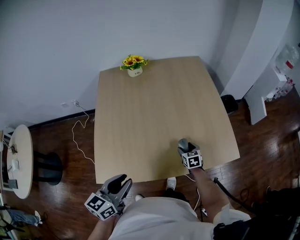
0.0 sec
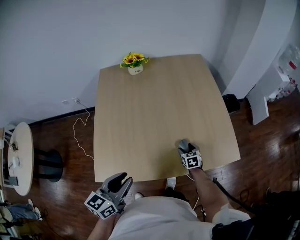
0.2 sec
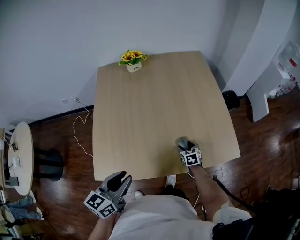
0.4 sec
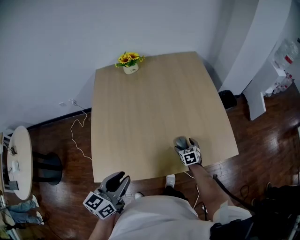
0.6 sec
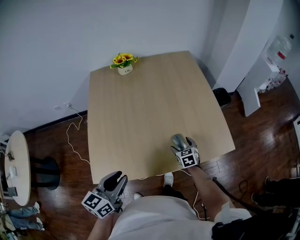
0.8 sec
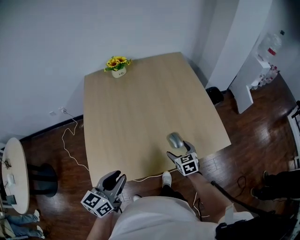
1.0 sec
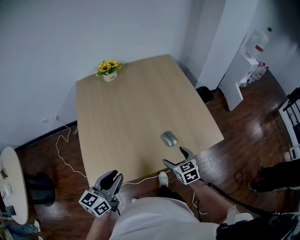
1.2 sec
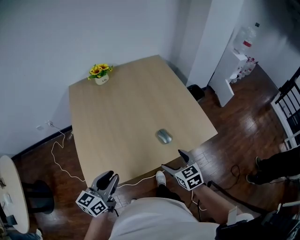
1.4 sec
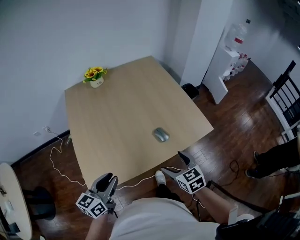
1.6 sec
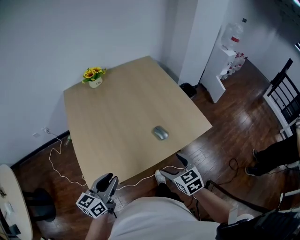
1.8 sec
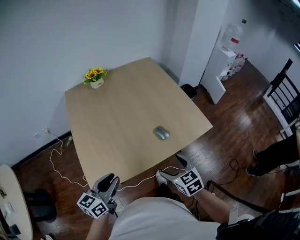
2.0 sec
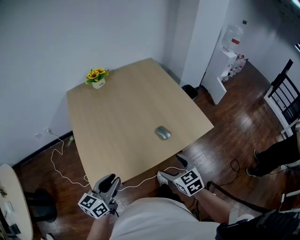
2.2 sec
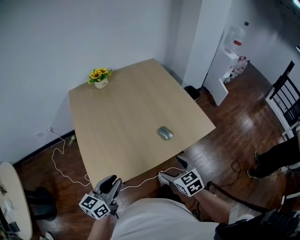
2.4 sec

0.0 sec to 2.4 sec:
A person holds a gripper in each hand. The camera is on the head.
0.0 sec to 1.2 sec: The right gripper is displaced upward and backward by about 20 cm.
1.2 sec to 2.4 sec: The left gripper goes some 5 cm backward. Meanwhile the right gripper heads backward and upward, covering approximately 15 cm.

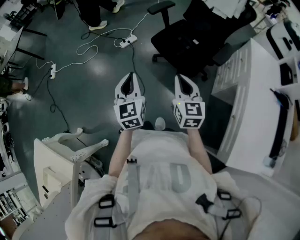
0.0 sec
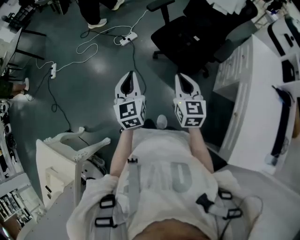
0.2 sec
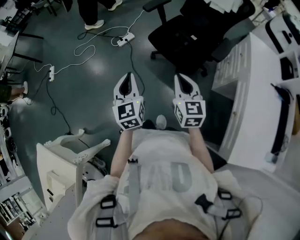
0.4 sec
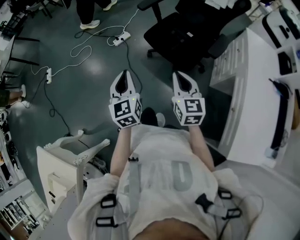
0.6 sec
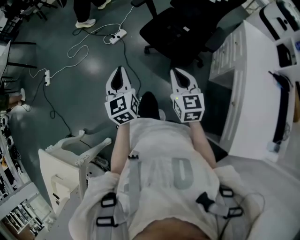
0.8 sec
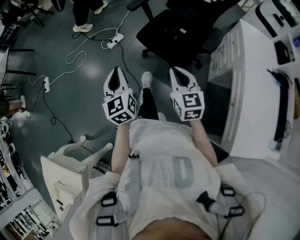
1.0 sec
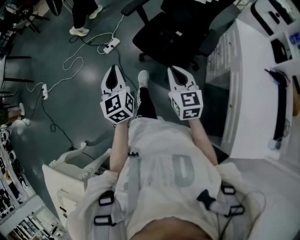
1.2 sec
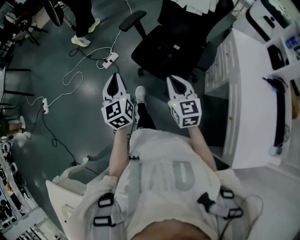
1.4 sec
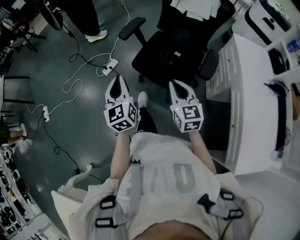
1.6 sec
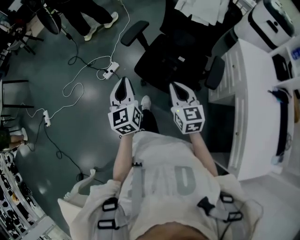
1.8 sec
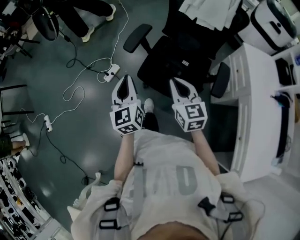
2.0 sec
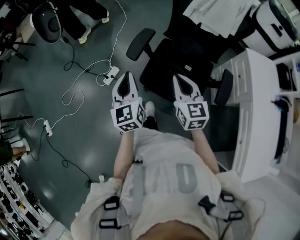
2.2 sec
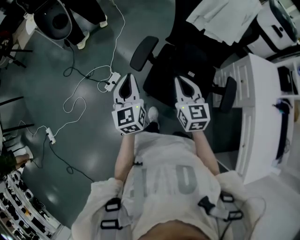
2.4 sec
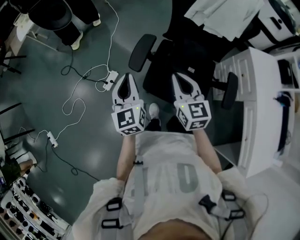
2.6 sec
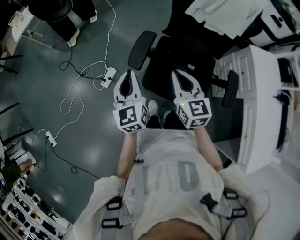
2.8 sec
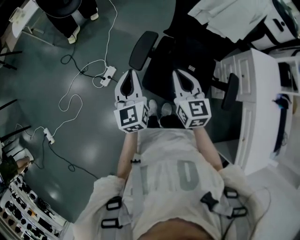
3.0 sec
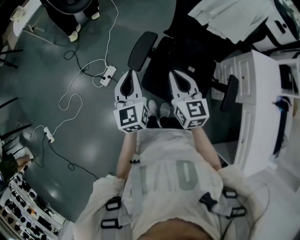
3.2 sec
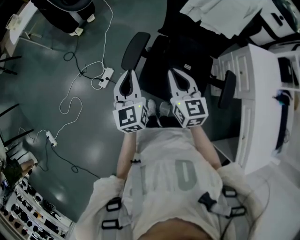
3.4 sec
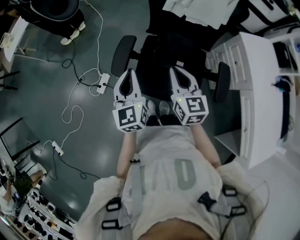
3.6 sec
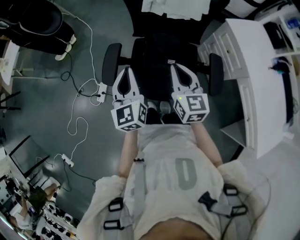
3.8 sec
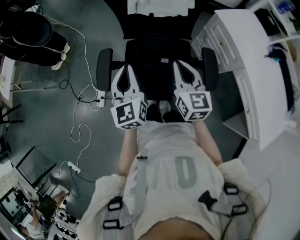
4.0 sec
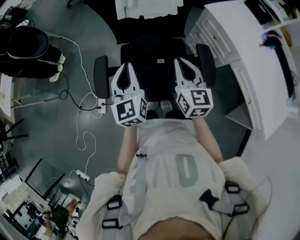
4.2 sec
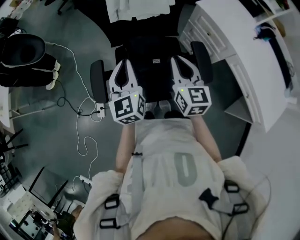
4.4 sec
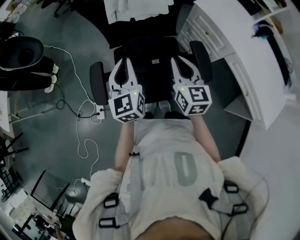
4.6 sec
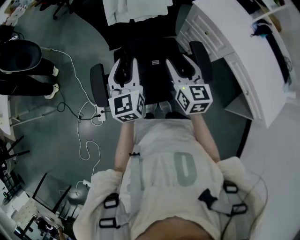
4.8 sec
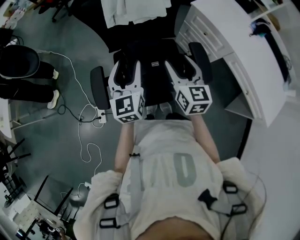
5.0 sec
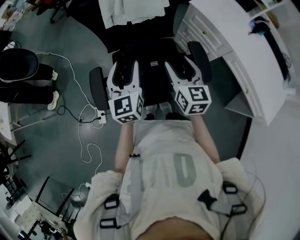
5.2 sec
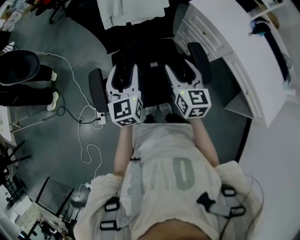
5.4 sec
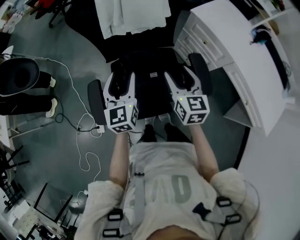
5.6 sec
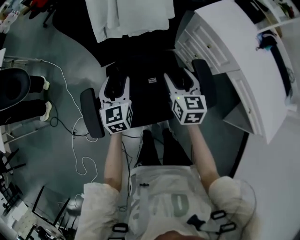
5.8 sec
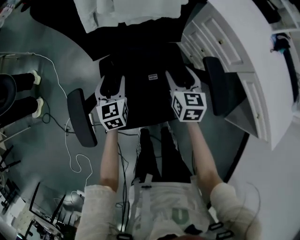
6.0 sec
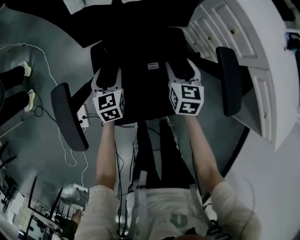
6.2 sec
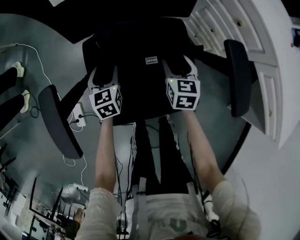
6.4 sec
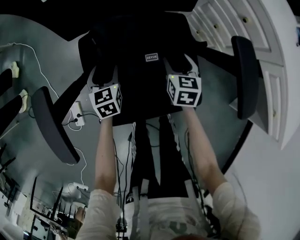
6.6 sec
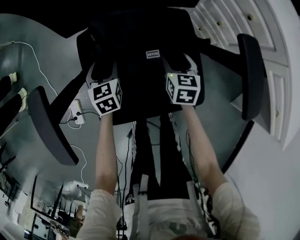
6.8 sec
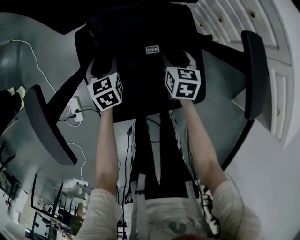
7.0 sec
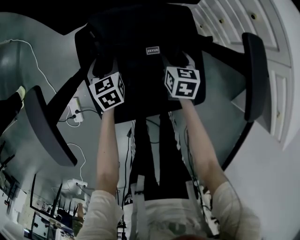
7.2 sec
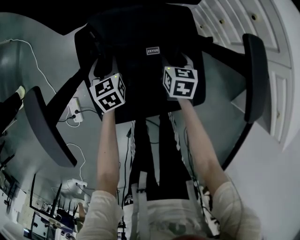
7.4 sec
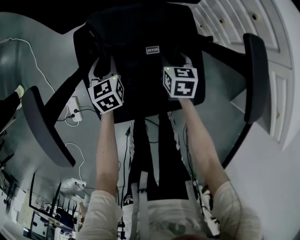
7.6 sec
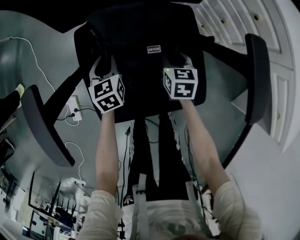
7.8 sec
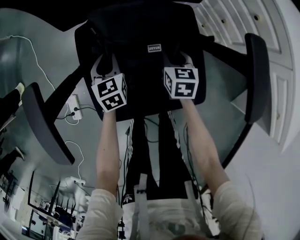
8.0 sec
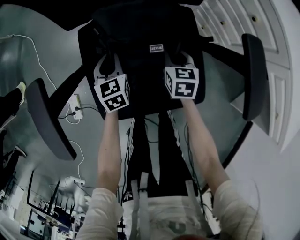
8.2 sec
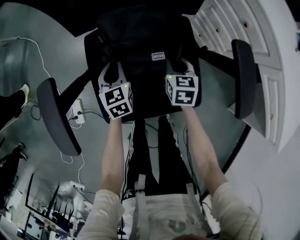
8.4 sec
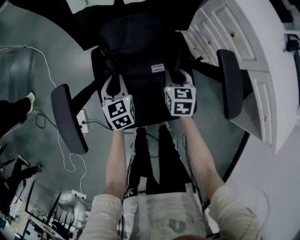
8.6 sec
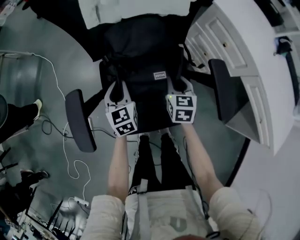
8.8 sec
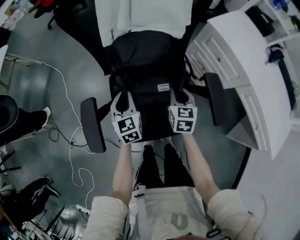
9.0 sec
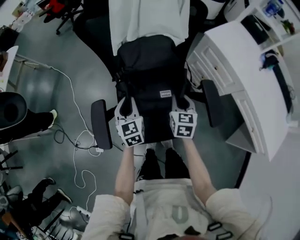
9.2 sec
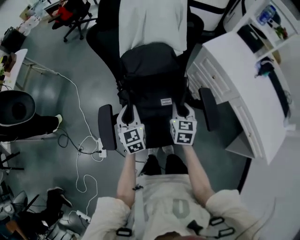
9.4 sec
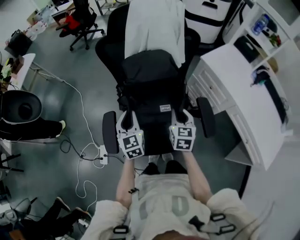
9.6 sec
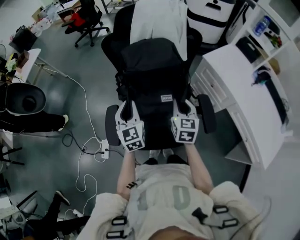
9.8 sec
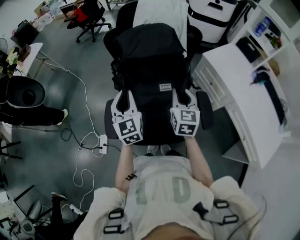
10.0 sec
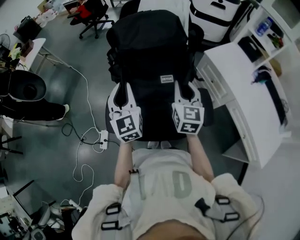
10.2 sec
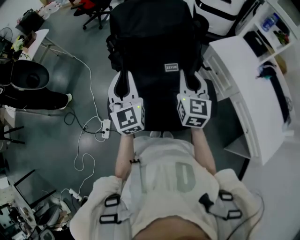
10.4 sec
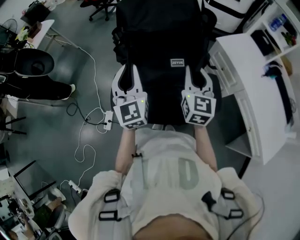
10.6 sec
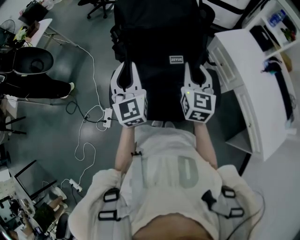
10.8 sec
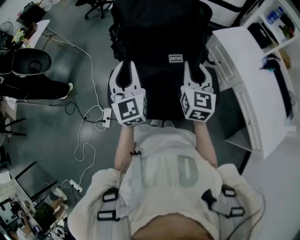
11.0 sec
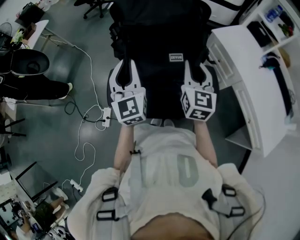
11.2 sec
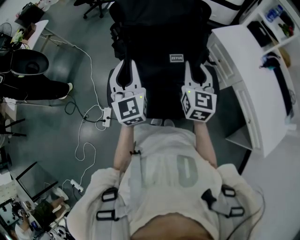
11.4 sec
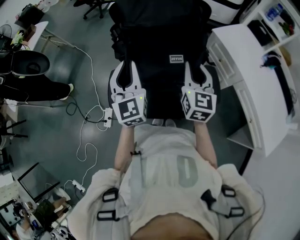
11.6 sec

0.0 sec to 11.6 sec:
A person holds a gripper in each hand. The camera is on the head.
0.0 sec to 1.4 sec: The left gripper is displaced forward by approximately 15 cm; the right gripper travels forward and to the right by some 10 cm.
1.4 sec to 2.8 sec: The grippers both shift forward by roughly 35 cm.
2.8 sec to 4.4 sec: The left gripper ends up roughly 25 cm from where it was, and rotates roughly 30 degrees. Meanwhile the right gripper ends up about 25 cm from where it was, and swivels approximately 40 degrees.
4.4 sec to 5.8 sec: The two grippers go some 15 cm downward and forward. The right gripper opens. The left gripper opens up.
5.8 sec to 7.2 sec: Both grippers move downward, approximately 35 cm. The right gripper turns by roughly 20 degrees. Meanwhile the left gripper rotates about 30 degrees.
7.2 sec to 8.8 sec: The two grippers go some 20 cm upward. The right gripper closes its fingers; the left gripper closes its fingers.
8.8 sec to 10.2 sec: Both grippers move upward, about 40 cm. The left gripper changes its angle by approximately 30 degrees; the right gripper swivels roughly 30 degrees.
10.2 sec to 11.6 sec: The grippers move only a little.

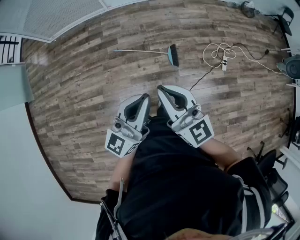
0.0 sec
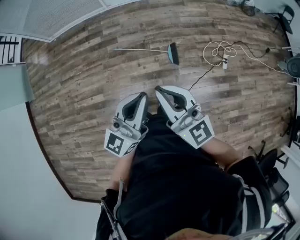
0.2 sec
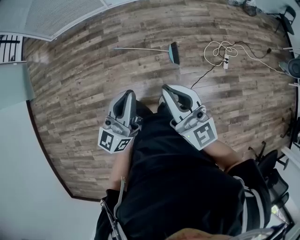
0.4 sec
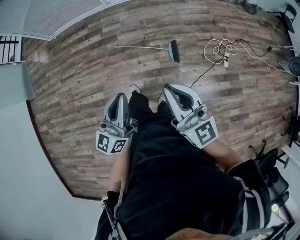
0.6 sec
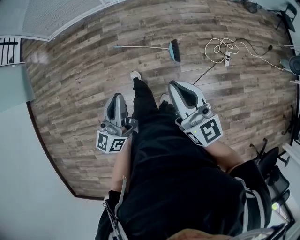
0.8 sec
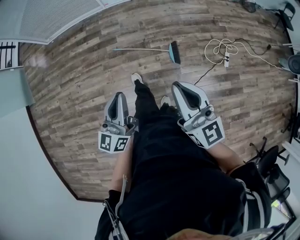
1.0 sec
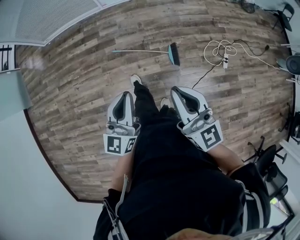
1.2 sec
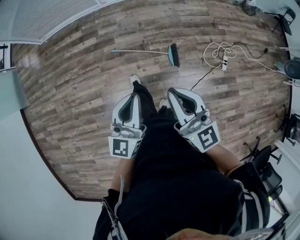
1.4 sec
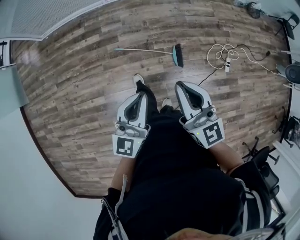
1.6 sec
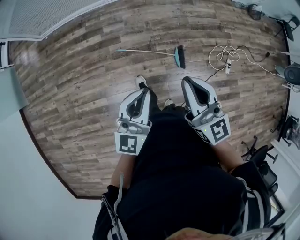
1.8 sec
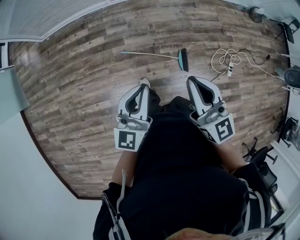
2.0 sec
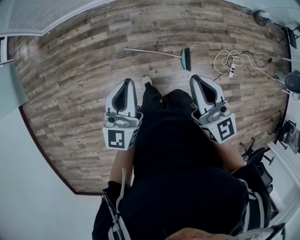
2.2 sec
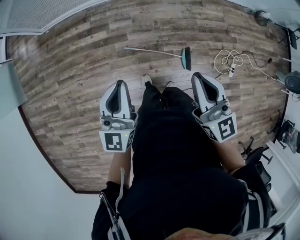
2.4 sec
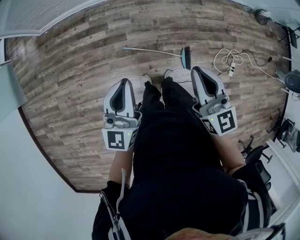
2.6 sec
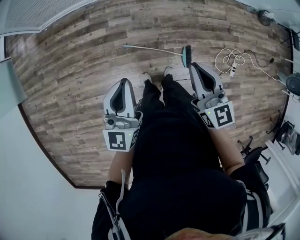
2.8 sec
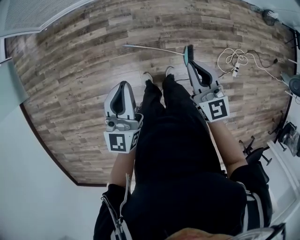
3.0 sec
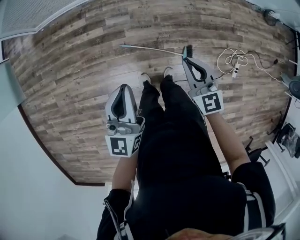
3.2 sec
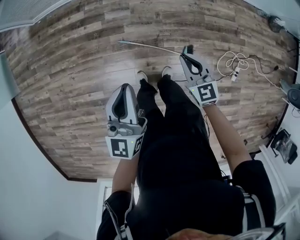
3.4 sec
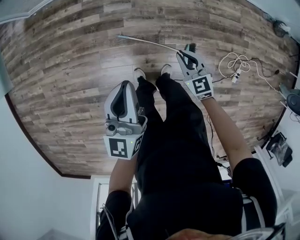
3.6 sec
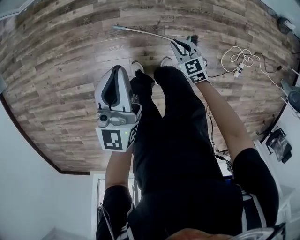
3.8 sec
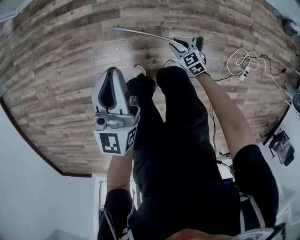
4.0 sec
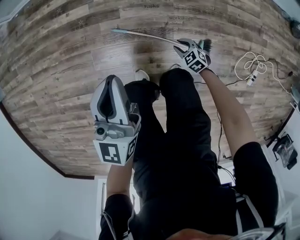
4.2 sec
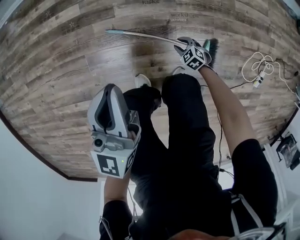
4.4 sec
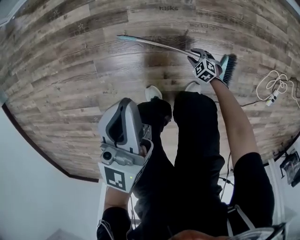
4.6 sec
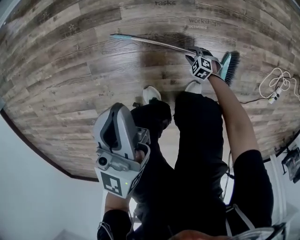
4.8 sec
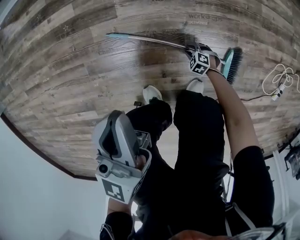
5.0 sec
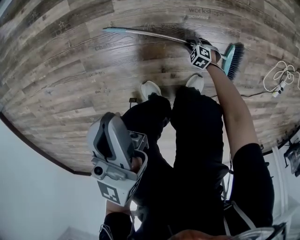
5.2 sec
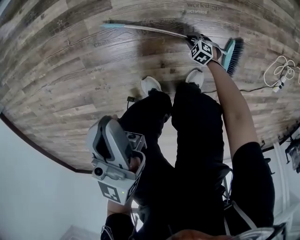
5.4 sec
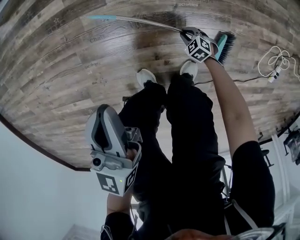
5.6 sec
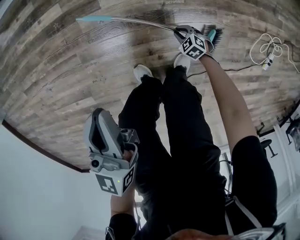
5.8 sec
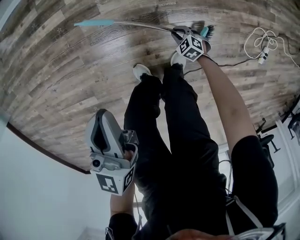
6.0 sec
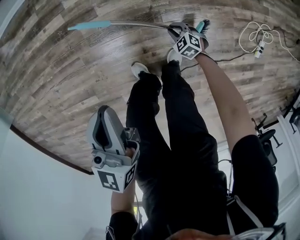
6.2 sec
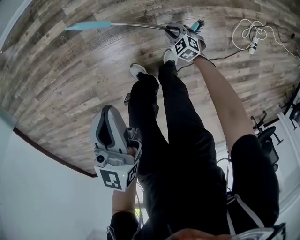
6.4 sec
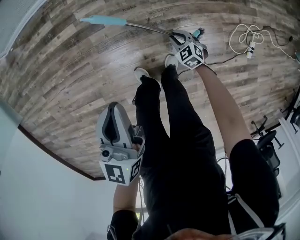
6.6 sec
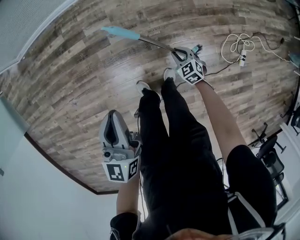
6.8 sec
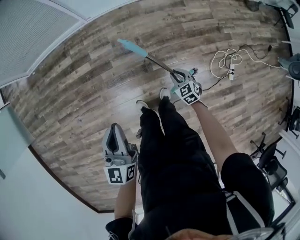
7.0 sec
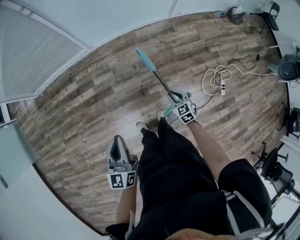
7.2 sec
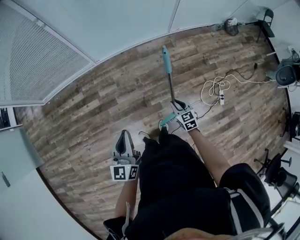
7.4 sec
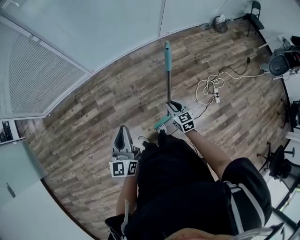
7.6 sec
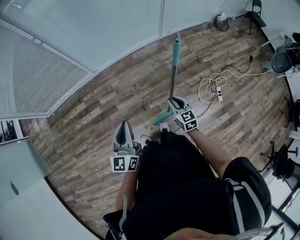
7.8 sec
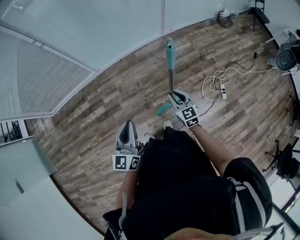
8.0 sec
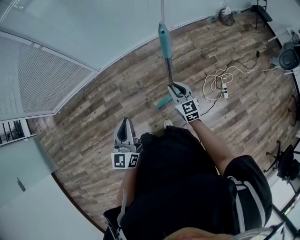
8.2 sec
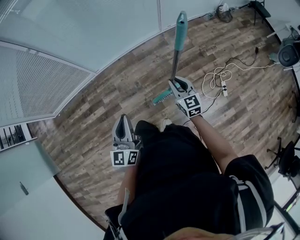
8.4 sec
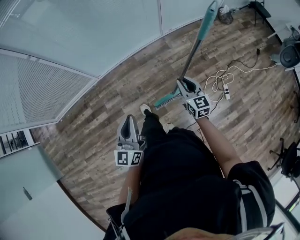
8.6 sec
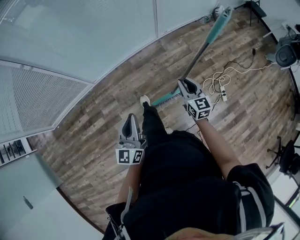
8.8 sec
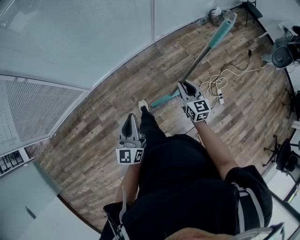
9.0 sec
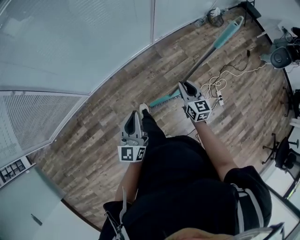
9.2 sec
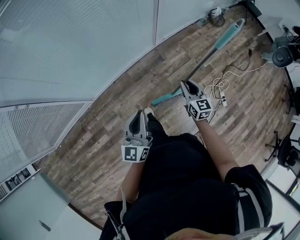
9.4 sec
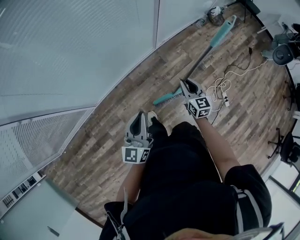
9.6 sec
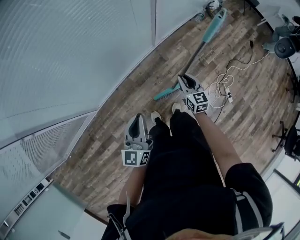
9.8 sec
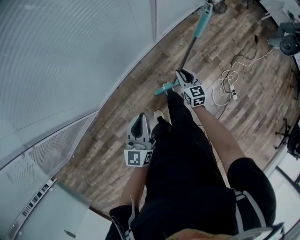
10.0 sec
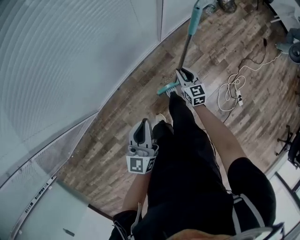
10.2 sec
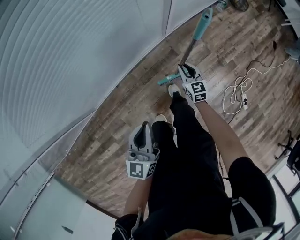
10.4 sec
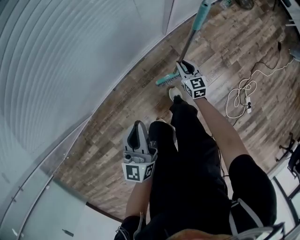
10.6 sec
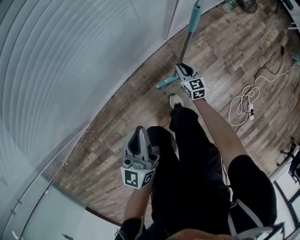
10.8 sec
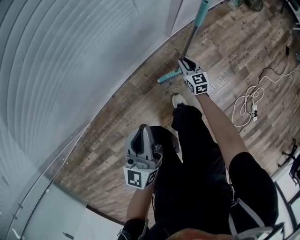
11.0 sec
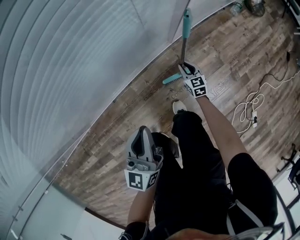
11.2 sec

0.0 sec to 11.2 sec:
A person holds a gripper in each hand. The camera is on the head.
0.0 sec to 1.6 sec: The left gripper moves forward, to the left and downward, about 20 cm. The right gripper heads forward, covering some 15 cm.
1.6 sec to 3.2 sec: The right gripper heads forward and downward, covering about 30 cm, and swivels roughly 30 degrees. Meanwhile the left gripper goes roughly 25 cm forward and to the left.
3.2 sec to 4.8 sec: The right gripper heads downward, covering about 90 cm, points its fingers about 50 degrees further downward, and opens its fingers; the left gripper goes some 50 cm downward.
4.8 sec to 6.4 sec: Both grippers move upward, some 25 cm. The right gripper swivels approximately 20 degrees.
6.4 sec to 8.0 sec: The right gripper goes roughly 60 cm upward, and tips its fingers upward by some 40 degrees; the left gripper is displaced upward and to the right by approximately 35 cm, and changes its angle by some 20 degrees.
8.0 sec to 9.6 sec: The grippers both shift forward by some 40 cm. The right gripper rotates roughly 30 degrees.
9.6 sec to 11.2 sec: Both grippers move downward and forward, approximately 60 cm.
